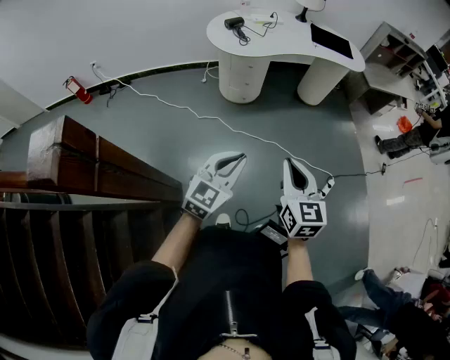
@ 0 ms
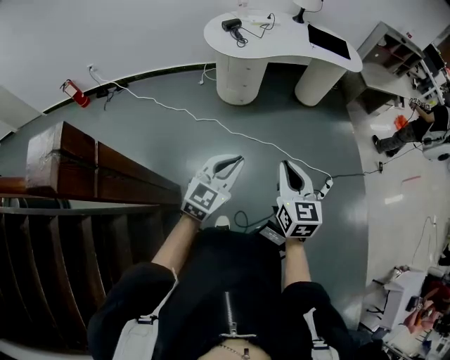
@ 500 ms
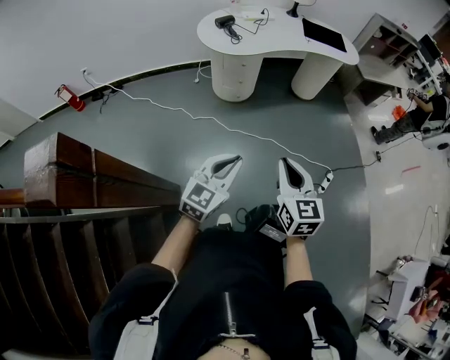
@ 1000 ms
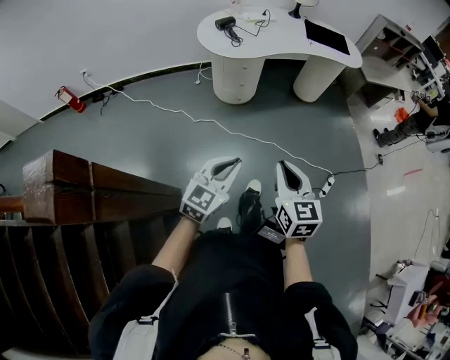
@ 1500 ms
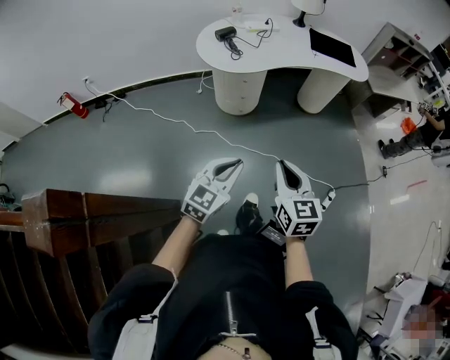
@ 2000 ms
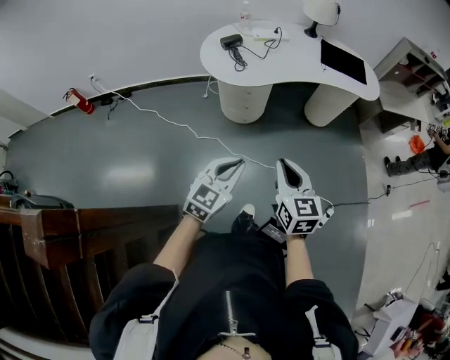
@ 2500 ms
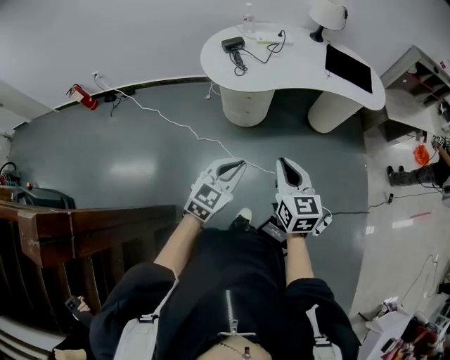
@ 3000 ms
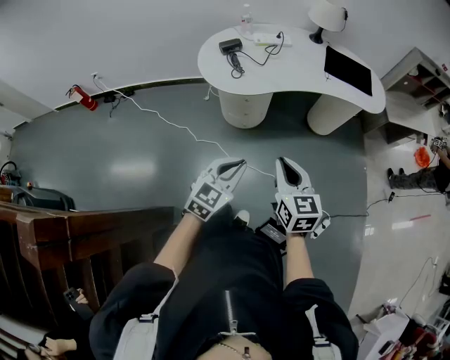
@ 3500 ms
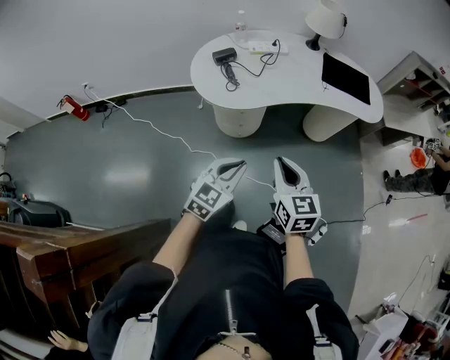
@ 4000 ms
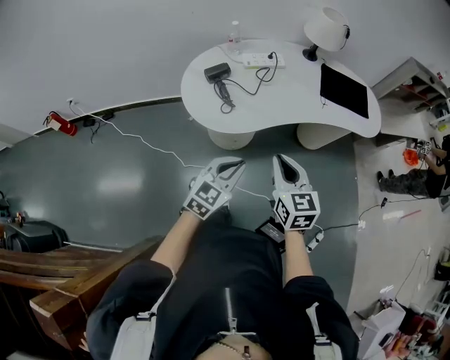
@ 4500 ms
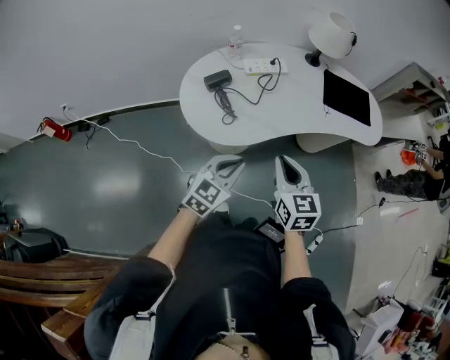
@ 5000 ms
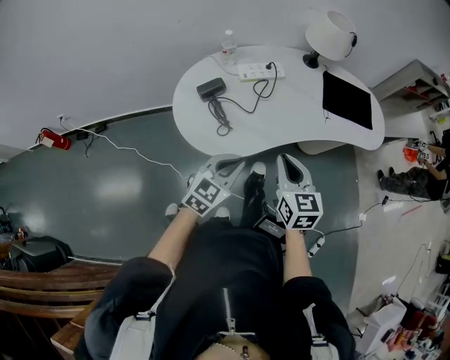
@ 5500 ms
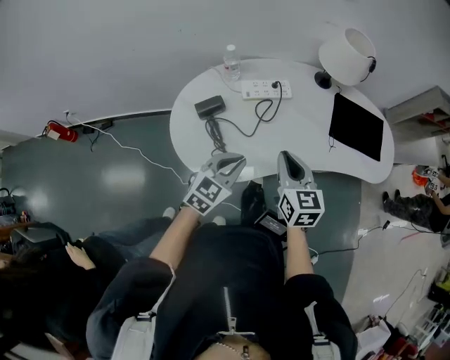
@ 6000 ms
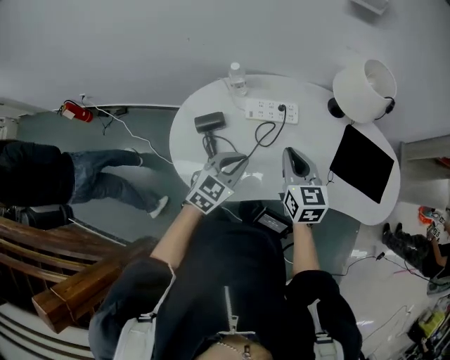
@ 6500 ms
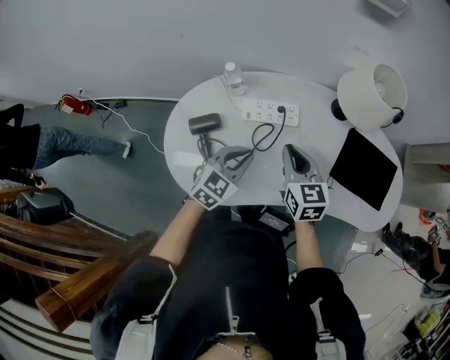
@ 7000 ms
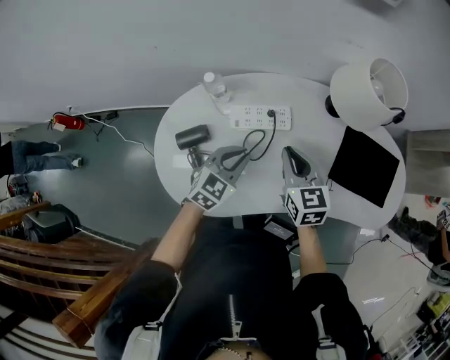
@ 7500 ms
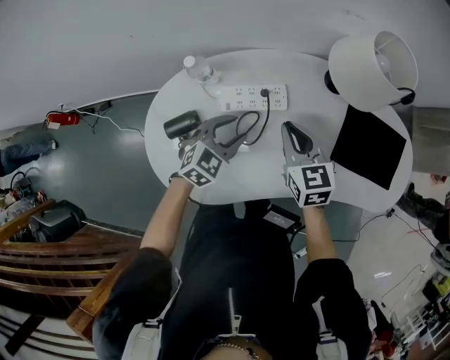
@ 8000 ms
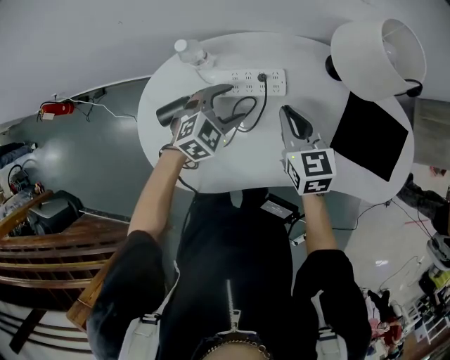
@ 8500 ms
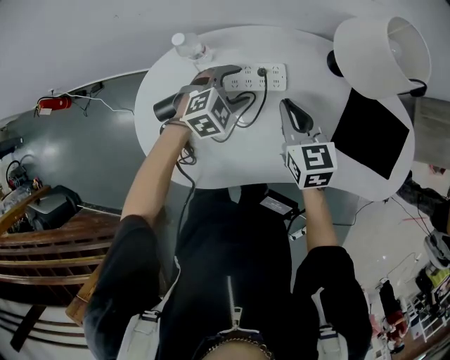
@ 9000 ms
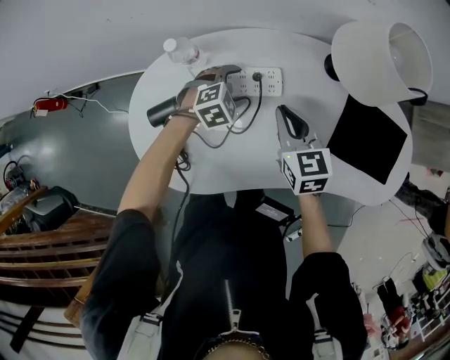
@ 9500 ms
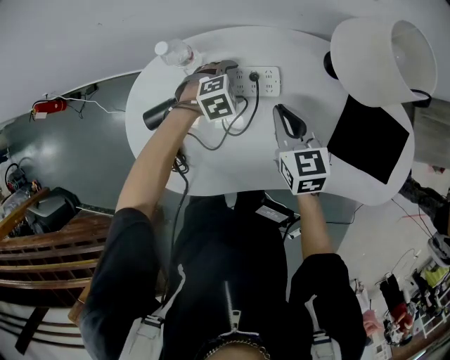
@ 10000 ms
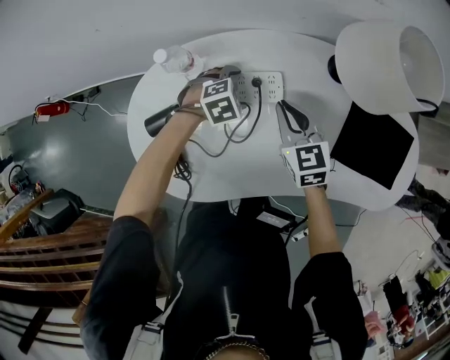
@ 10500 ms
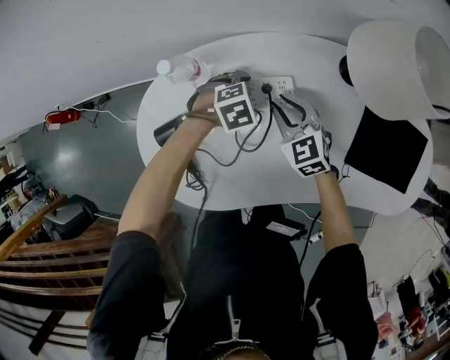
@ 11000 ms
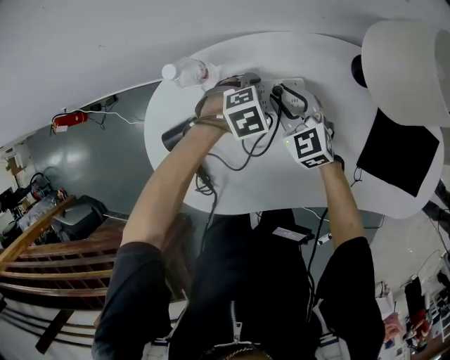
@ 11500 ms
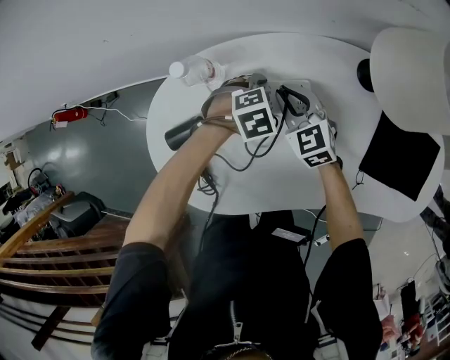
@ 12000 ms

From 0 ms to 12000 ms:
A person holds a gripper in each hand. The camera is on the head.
From 0 ms to 2000 ms: Both grippers move forward, approximately 15 cm.
From 2000 ms to 4000 ms: Both grippers travel together forward, about 25 cm.
From 4000 ms to 6000 ms: The two grippers go about 40 cm forward.
From 6000 ms to 8000 ms: Both grippers move forward, approximately 25 cm.
From 8000 ms to 10000 ms: The right gripper changes place by some 5 cm; the left gripper travels downward and forward by approximately 15 cm, turns by some 30 degrees, and opens its fingers.
From 10000 ms to 12000 ms: The right gripper travels to the left, downward and forward by roughly 15 cm, and changes its angle by approximately 20 degrees.

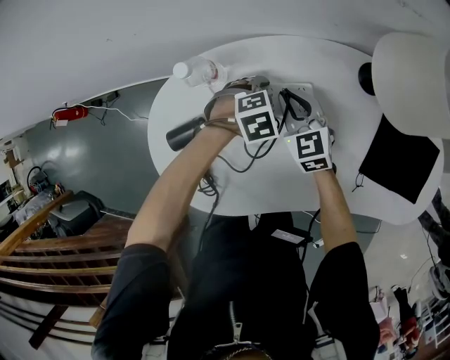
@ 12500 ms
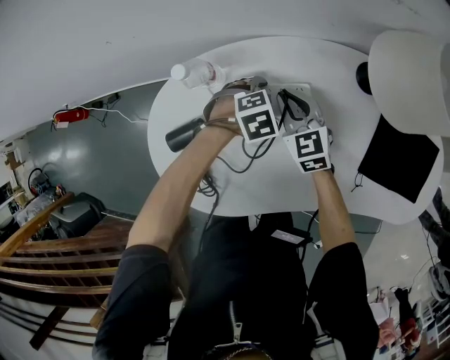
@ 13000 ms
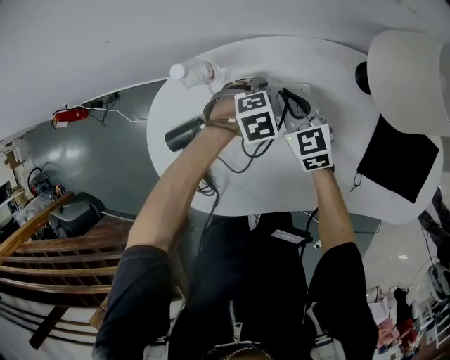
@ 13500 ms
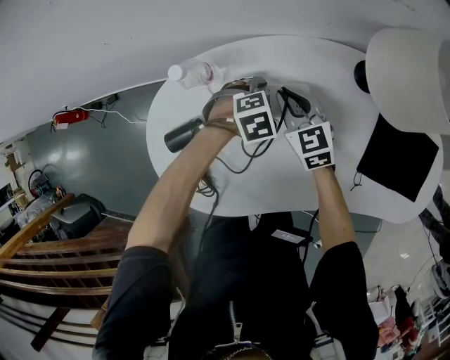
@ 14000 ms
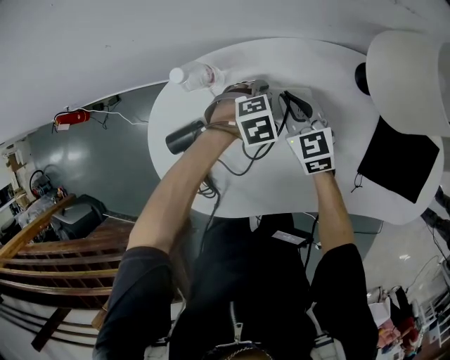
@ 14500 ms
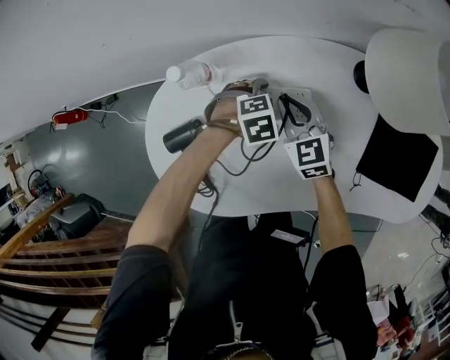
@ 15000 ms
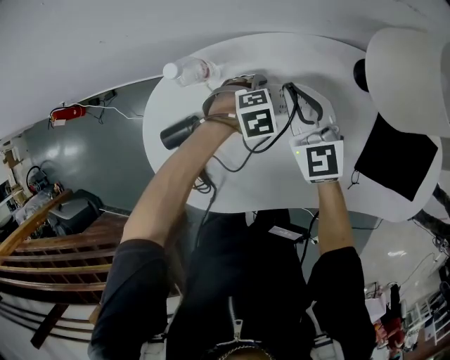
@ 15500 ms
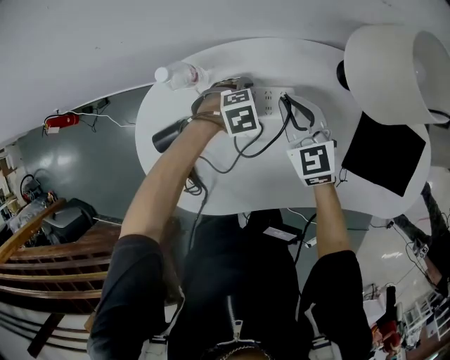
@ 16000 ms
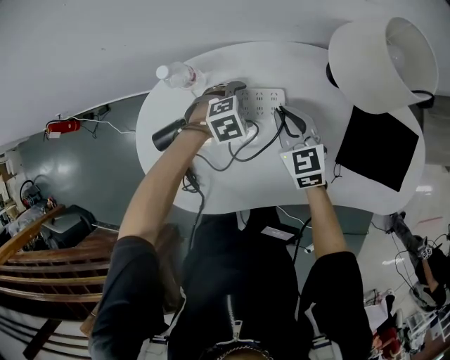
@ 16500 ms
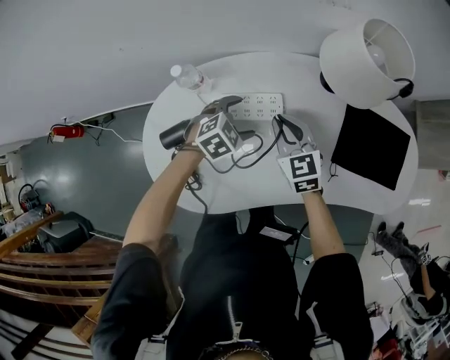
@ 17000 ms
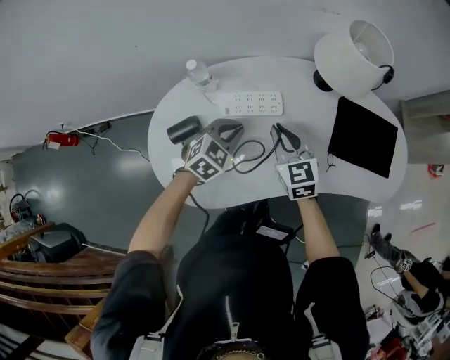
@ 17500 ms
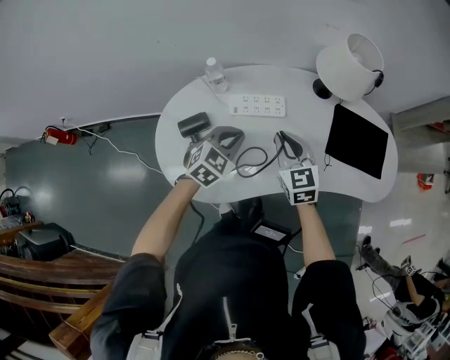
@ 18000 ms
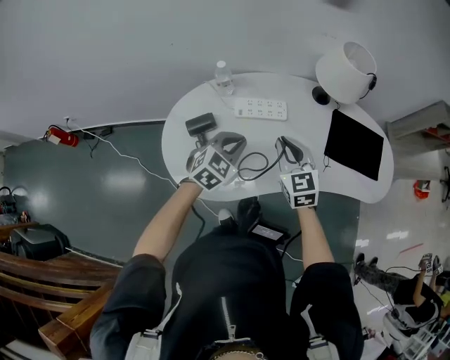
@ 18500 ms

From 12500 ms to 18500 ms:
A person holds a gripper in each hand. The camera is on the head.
From 12500 ms to 14500 ms: There are only small adjustments of the grippers.
From 14500 ms to 16500 ms: The right gripper moves approximately 10 cm.
From 16500 ms to 18500 ms: The two grippers go about 25 cm backward and upward. The left gripper points its fingers about 30 degrees further upward, and closes.

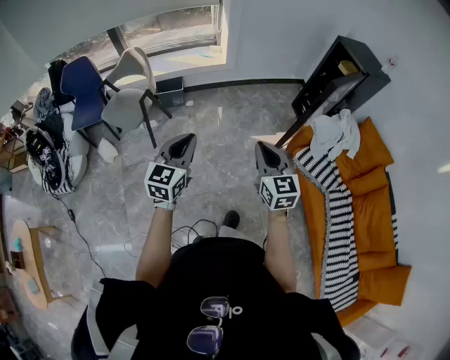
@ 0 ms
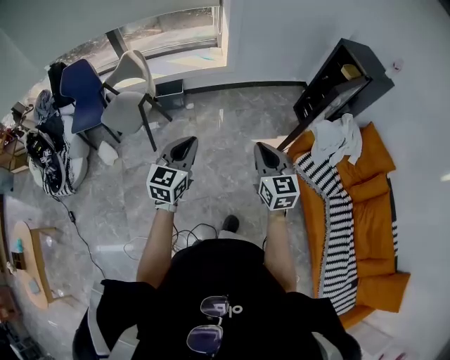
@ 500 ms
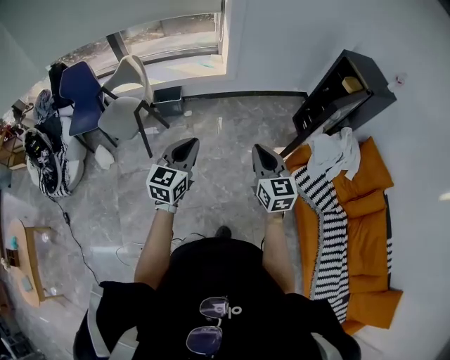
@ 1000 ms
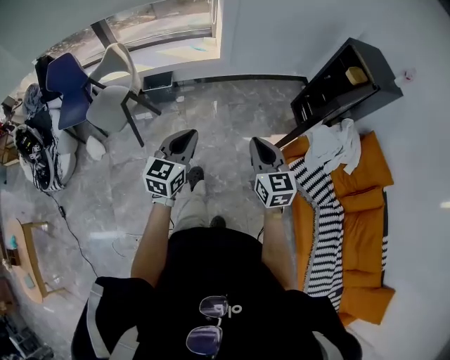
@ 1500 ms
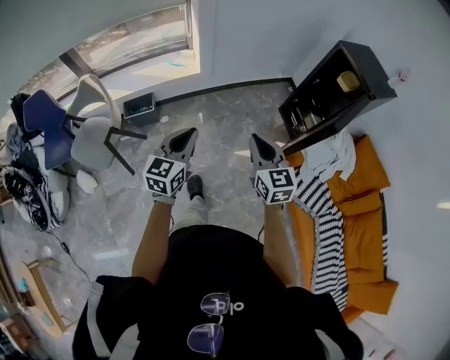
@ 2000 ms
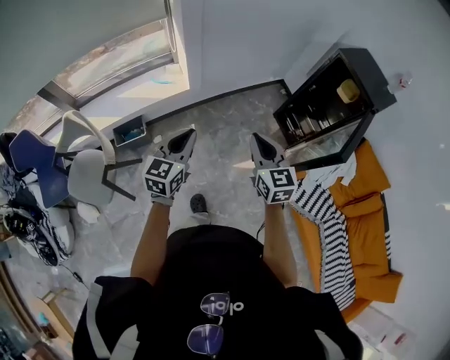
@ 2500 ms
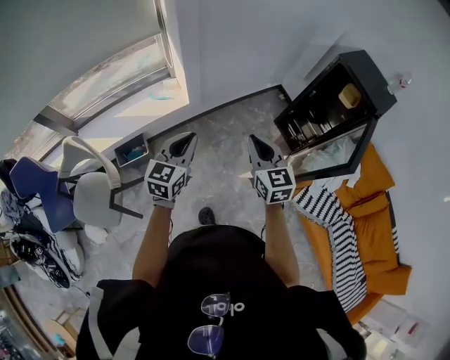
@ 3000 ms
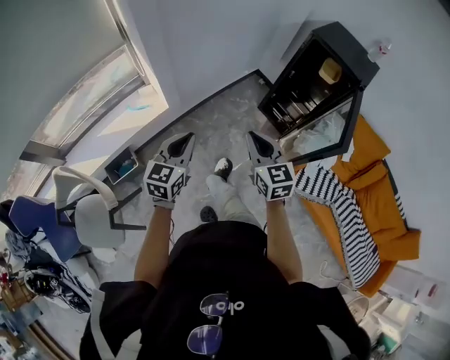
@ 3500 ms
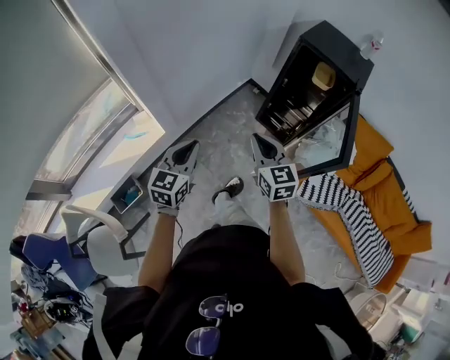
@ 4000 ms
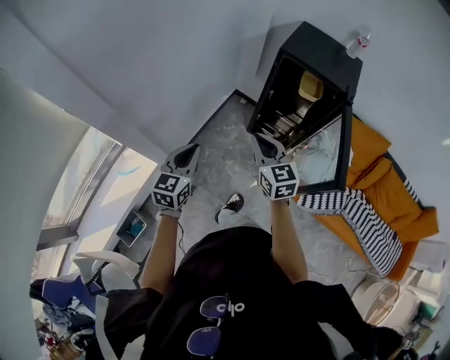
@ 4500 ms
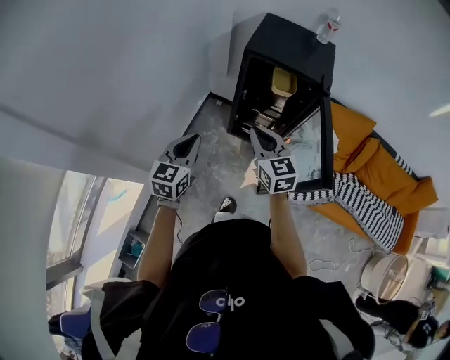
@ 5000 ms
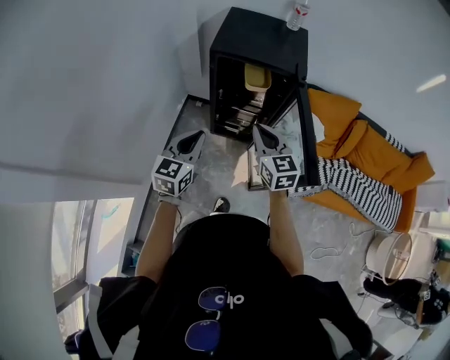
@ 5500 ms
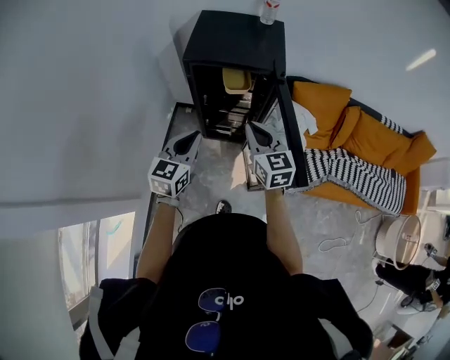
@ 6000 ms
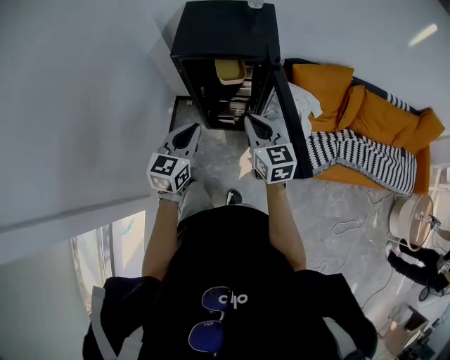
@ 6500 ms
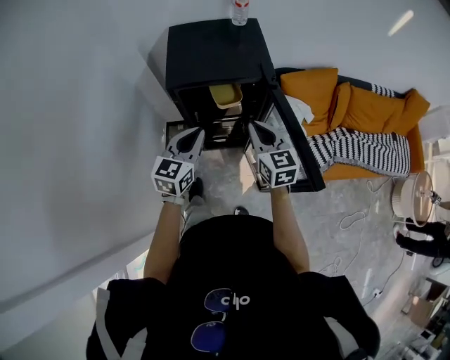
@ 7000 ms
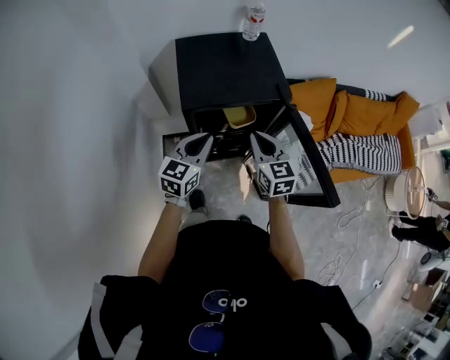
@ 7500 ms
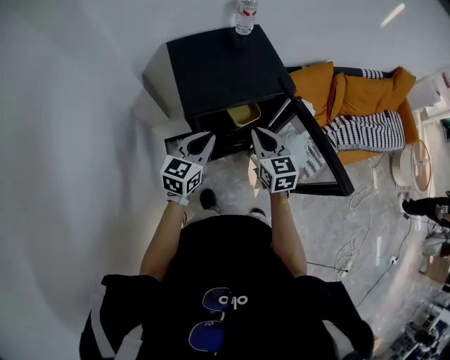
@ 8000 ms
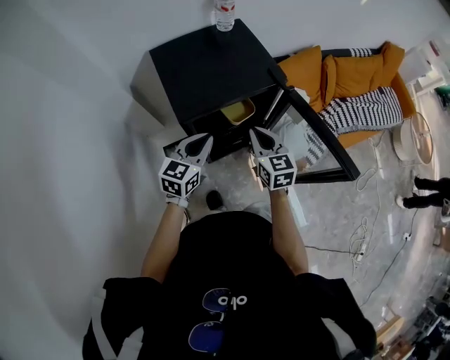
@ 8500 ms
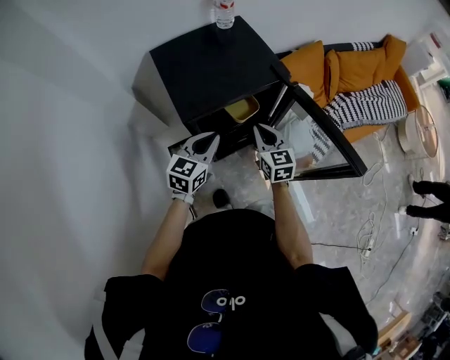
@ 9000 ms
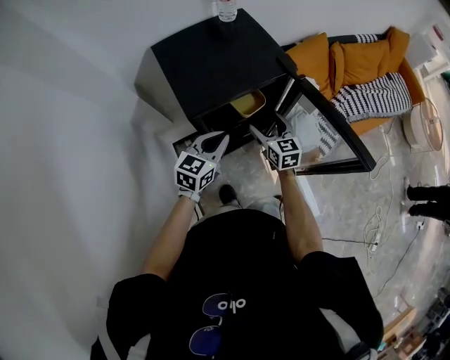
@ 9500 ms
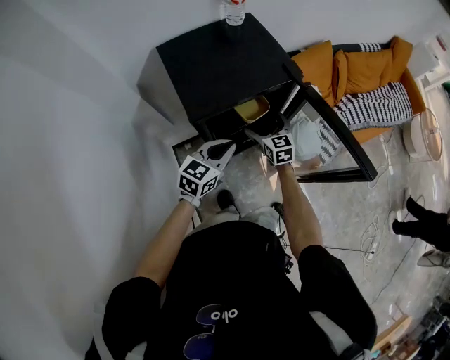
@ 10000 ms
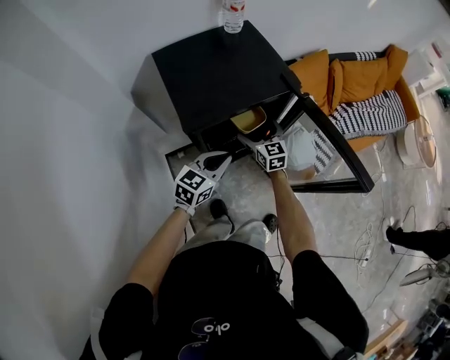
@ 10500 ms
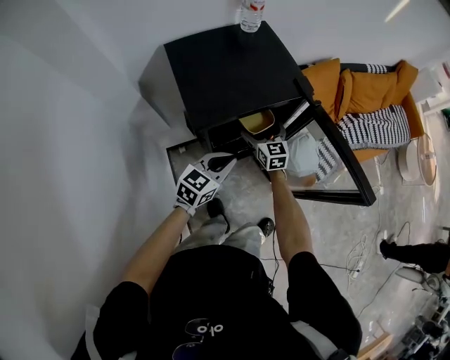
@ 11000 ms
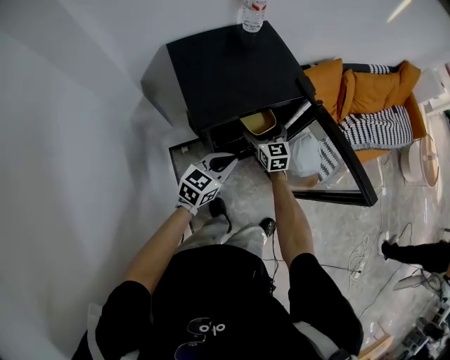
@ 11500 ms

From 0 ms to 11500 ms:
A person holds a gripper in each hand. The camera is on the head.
From 0 ms to 2000 ms: The grippers both shift forward by some 35 cm.
From 2000 ms to 4000 ms: The right gripper moves some 30 cm, and turns by about 30 degrees. Meanwhile the left gripper ends up about 35 cm from where it was, and changes its angle by approximately 30 degrees.
From 4000 ms to 6000 ms: The left gripper ends up some 40 cm from where it was, and turns by about 30 degrees. The right gripper shifts by about 35 cm, and swivels about 30 degrees.
From 6000 ms to 7500 ms: The left gripper travels forward by roughly 20 cm, and swivels roughly 20 degrees; the right gripper heads forward and to the left, covering approximately 15 cm, and turns by roughly 20 degrees.
From 7500 ms to 9500 ms: The left gripper heads downward, covering about 10 cm, and changes its angle by some 20 degrees. The right gripper goes approximately 15 cm downward, and opens its fingers.
From 9500 ms to 11500 ms: The right gripper travels forward and to the left by some 10 cm.
